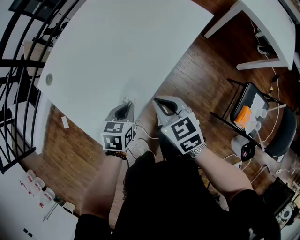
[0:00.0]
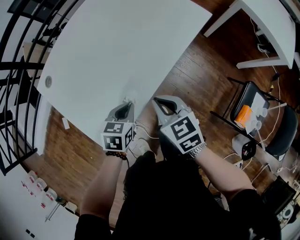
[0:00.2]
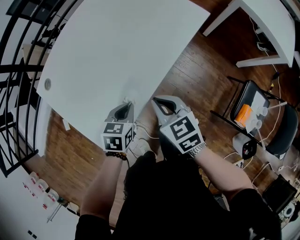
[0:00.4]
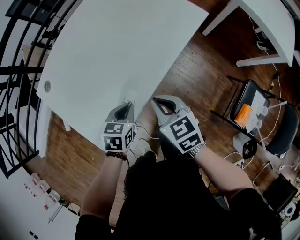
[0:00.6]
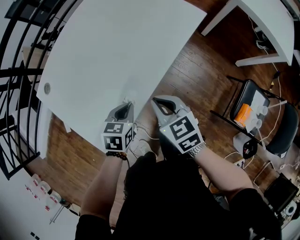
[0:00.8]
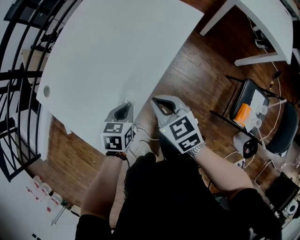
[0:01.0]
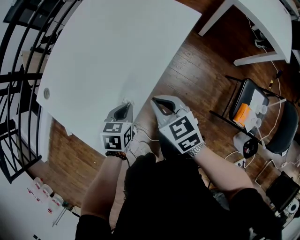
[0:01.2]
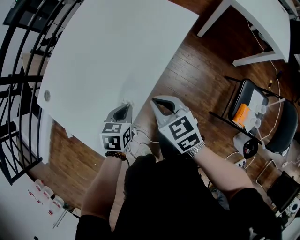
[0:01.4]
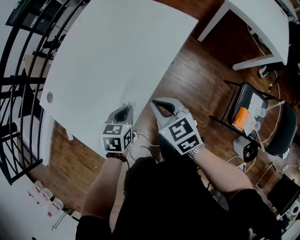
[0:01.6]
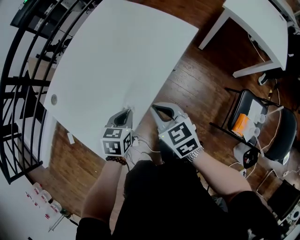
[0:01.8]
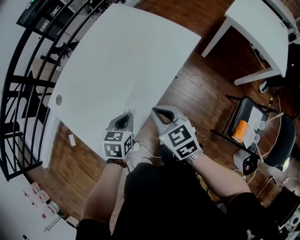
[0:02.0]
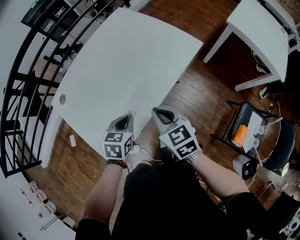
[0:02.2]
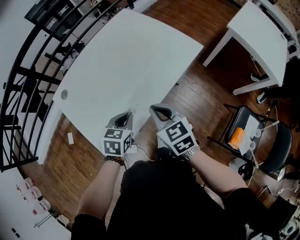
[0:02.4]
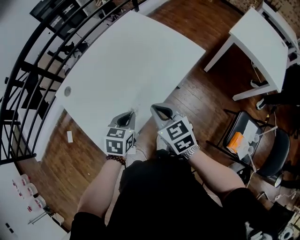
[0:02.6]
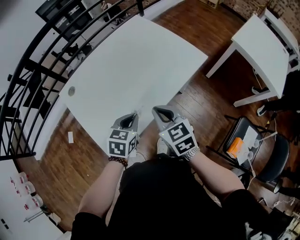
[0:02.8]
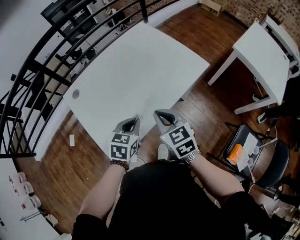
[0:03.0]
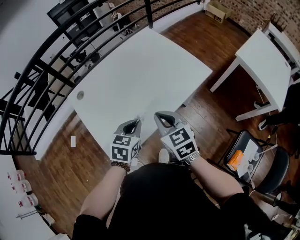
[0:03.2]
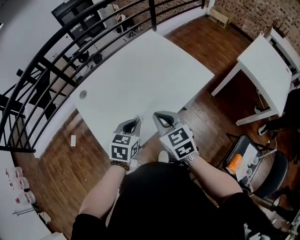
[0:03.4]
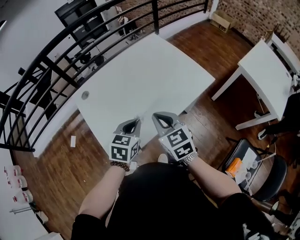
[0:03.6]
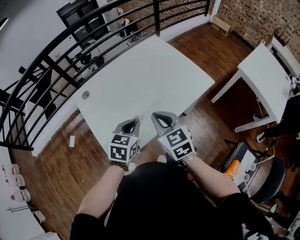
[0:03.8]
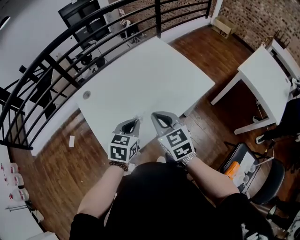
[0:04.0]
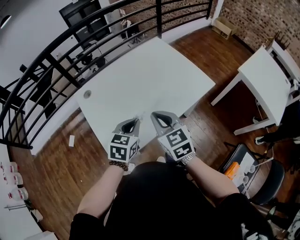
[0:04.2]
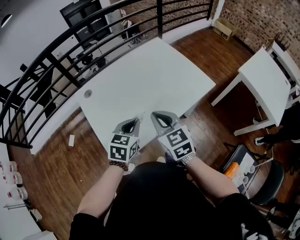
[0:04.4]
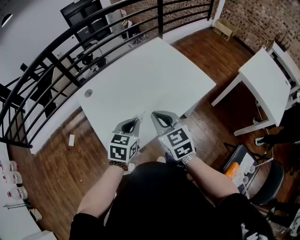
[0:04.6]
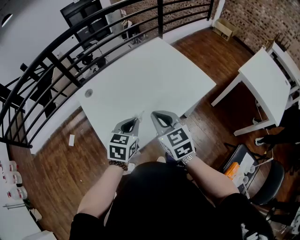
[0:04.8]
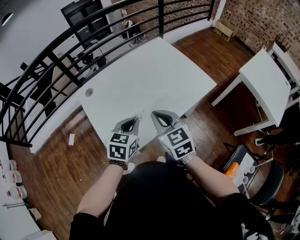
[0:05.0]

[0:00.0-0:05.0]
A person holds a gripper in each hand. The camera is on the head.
0:00.0 to 0:01.6: The left gripper moves roughly 5 cm; the right gripper shifts by some 5 cm.
0:01.6 to 0:03.4: The left gripper moves upward, some 15 cm; the right gripper goes some 10 cm upward and to the left.
0:03.4 to 0:05.0: The grippers stay close to where they were, moving slightly.

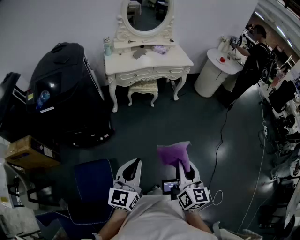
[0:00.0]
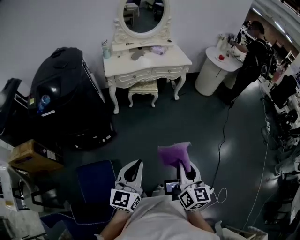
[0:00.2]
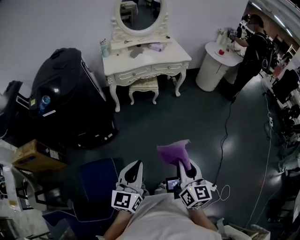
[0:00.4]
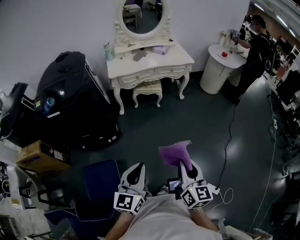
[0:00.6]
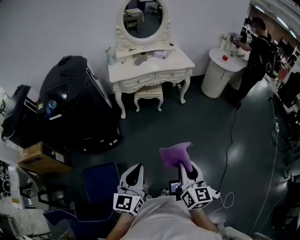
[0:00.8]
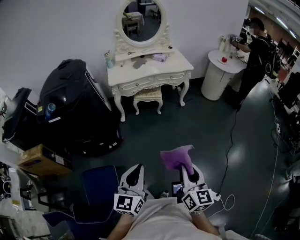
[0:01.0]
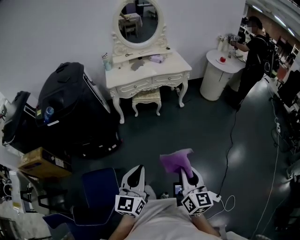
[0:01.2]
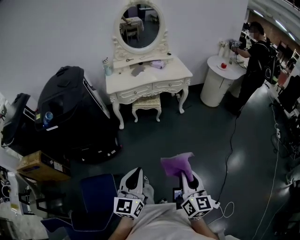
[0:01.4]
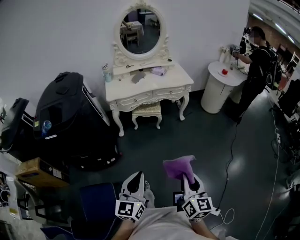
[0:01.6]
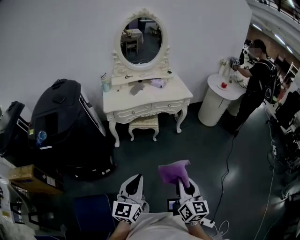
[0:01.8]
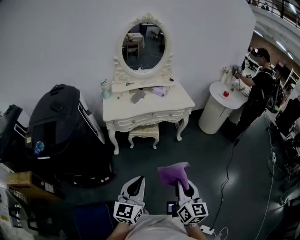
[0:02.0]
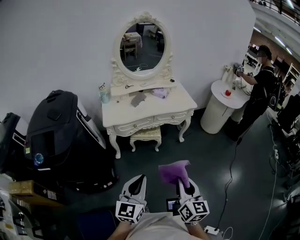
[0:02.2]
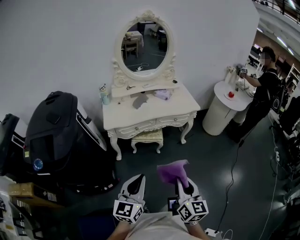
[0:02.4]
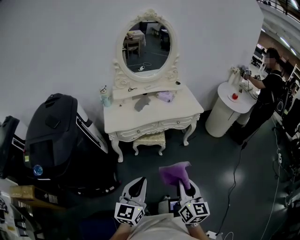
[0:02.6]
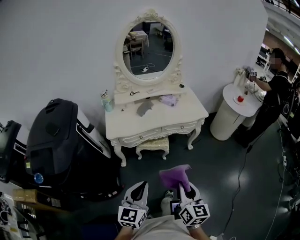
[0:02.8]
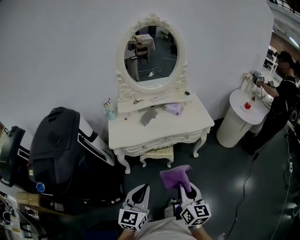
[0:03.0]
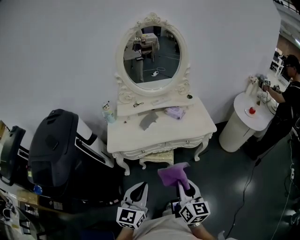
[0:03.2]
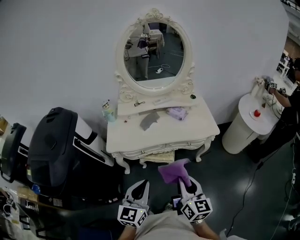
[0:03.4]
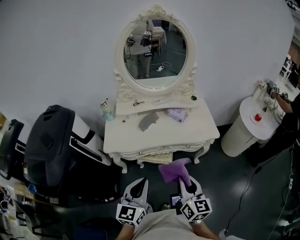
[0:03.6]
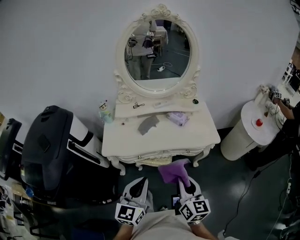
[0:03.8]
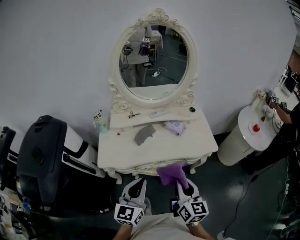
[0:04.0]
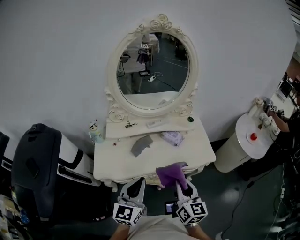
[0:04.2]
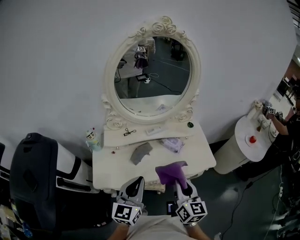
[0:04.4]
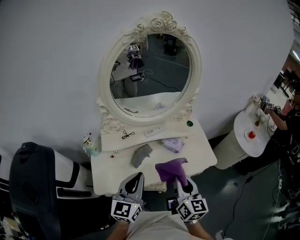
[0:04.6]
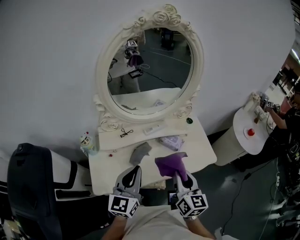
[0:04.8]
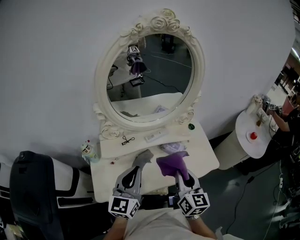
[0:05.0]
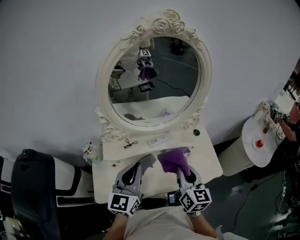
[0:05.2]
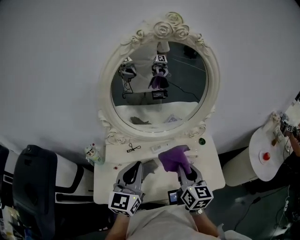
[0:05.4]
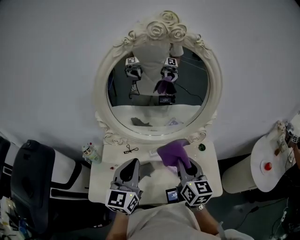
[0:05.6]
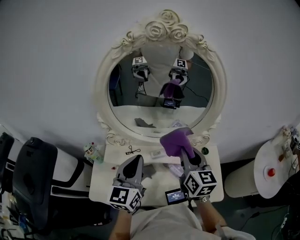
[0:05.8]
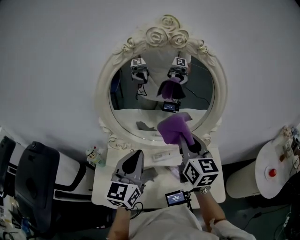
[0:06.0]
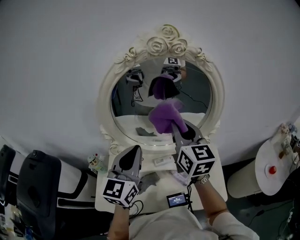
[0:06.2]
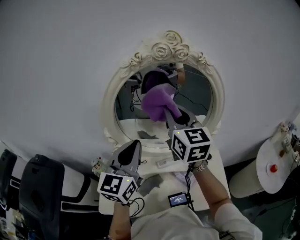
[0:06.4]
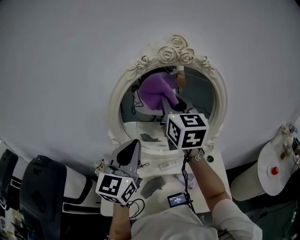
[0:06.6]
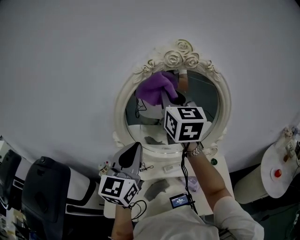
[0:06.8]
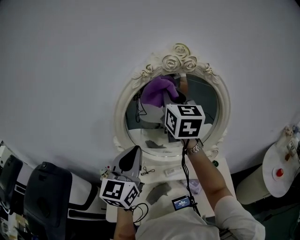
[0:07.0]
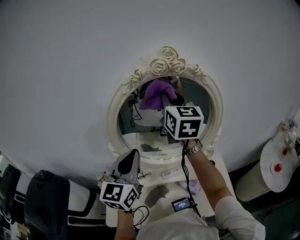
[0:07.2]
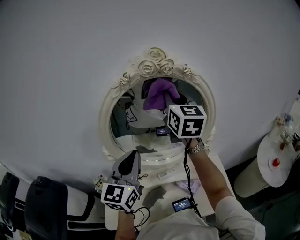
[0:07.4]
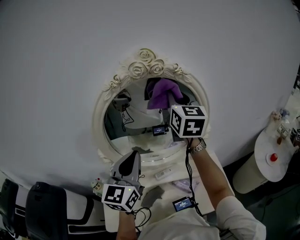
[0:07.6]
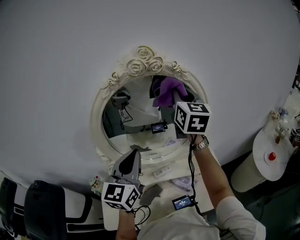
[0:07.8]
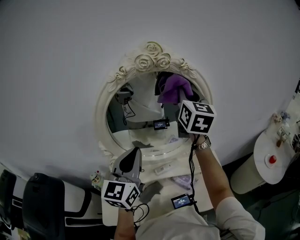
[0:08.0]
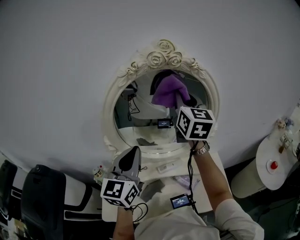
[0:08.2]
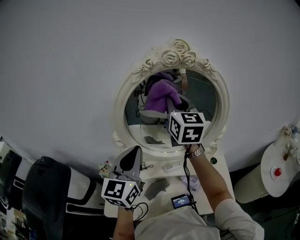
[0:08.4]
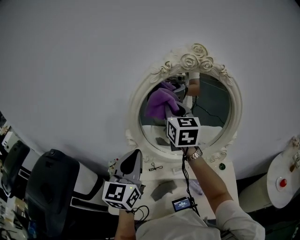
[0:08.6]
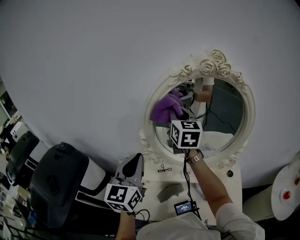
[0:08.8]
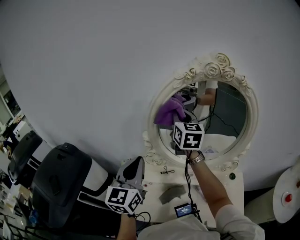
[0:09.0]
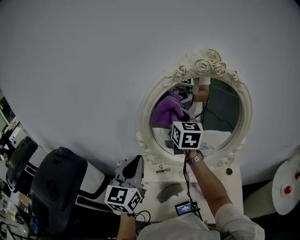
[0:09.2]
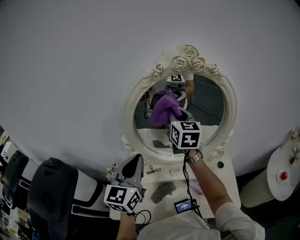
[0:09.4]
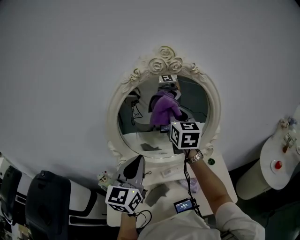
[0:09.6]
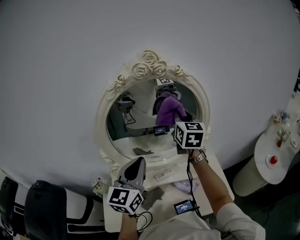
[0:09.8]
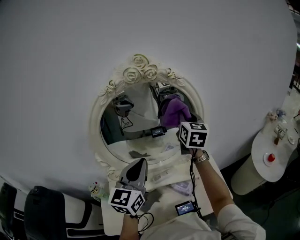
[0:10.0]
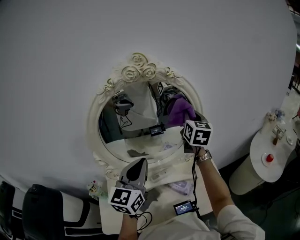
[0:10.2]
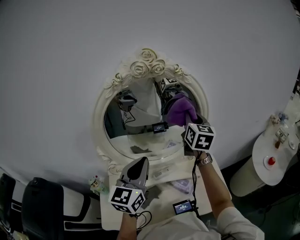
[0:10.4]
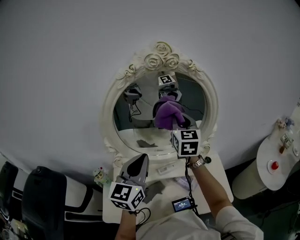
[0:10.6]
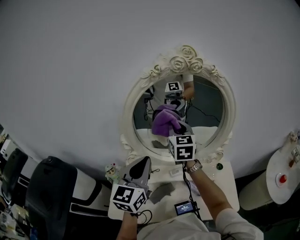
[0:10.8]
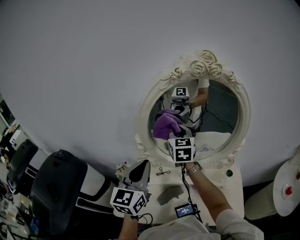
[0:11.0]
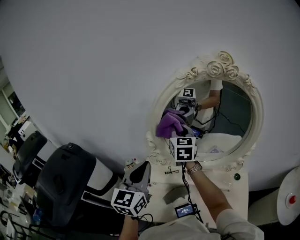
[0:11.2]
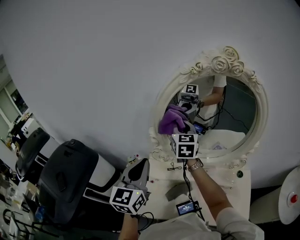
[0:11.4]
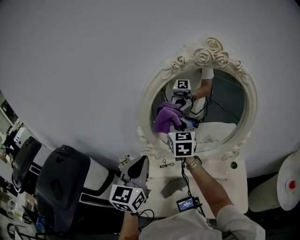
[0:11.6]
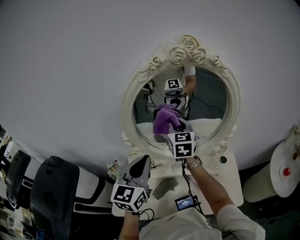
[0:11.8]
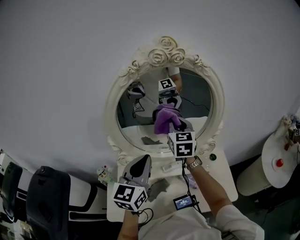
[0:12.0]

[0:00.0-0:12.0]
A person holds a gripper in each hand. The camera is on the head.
0:00.0 to 0:01.6: The two grippers go approximately 10 cm to the right and forward.
0:01.6 to 0:03.0: The two grippers travel together, forward, approximately 40 cm.
0:03.0 to 0:04.4: Both grippers travel together forward, roughly 40 cm.
0:04.4 to 0:06.0: The grippers both shift forward by roughly 35 cm.
0:06.0 to 0:07.6: The right gripper is displaced upward and forward by roughly 25 cm, and rotates approximately 20 degrees. Meanwhile the left gripper travels upward by some 10 cm.
0:07.6 to 0:09.0: The right gripper heads to the left, covering approximately 20 cm, and changes its angle by approximately 20 degrees. The left gripper travels to the left and backward by approximately 15 cm, and turns by some 20 degrees.
0:09.0 to 0:10.4: The left gripper shifts by approximately 20 cm, and rotates approximately 30 degrees. The right gripper moves approximately 30 cm, and turns by roughly 30 degrees.

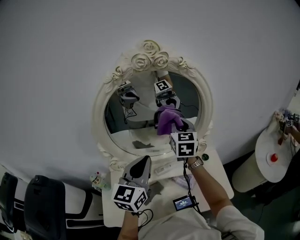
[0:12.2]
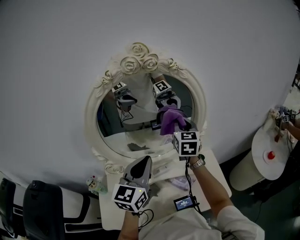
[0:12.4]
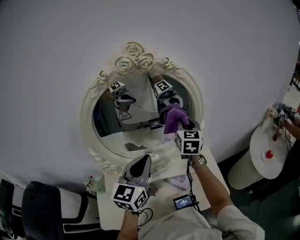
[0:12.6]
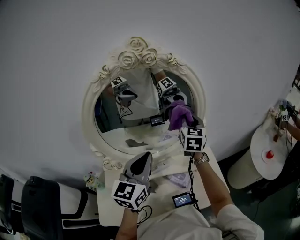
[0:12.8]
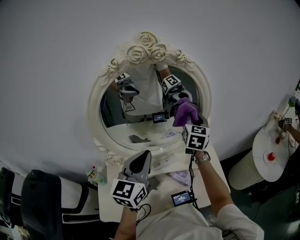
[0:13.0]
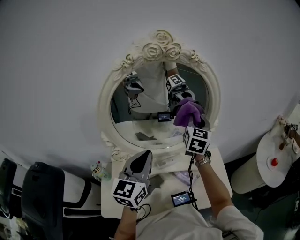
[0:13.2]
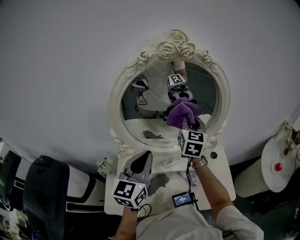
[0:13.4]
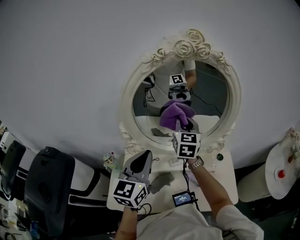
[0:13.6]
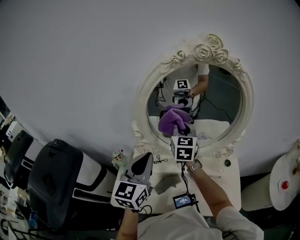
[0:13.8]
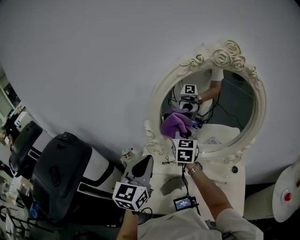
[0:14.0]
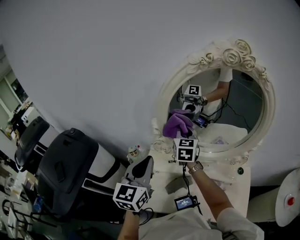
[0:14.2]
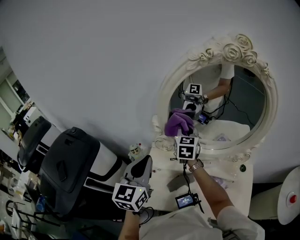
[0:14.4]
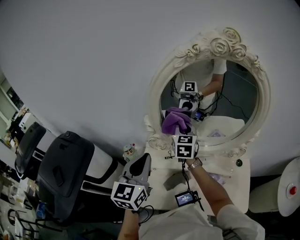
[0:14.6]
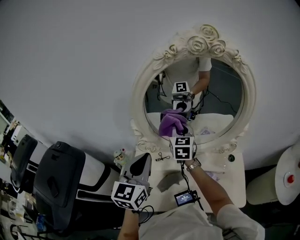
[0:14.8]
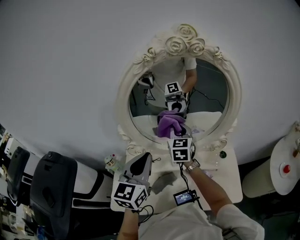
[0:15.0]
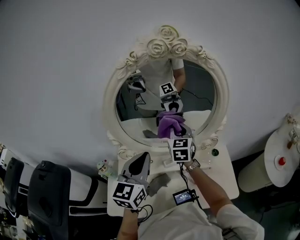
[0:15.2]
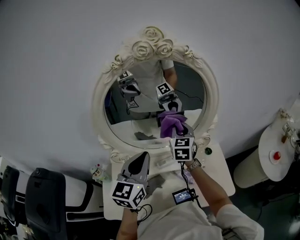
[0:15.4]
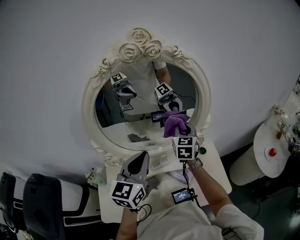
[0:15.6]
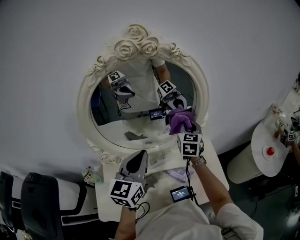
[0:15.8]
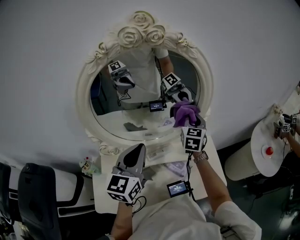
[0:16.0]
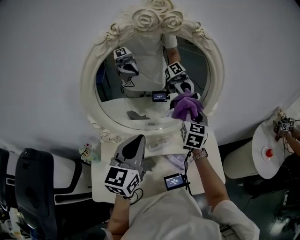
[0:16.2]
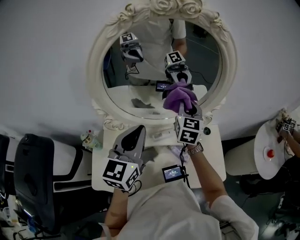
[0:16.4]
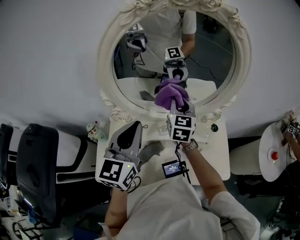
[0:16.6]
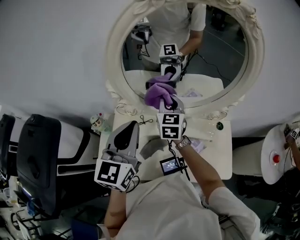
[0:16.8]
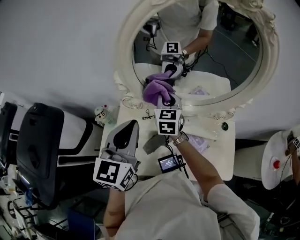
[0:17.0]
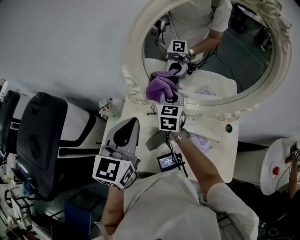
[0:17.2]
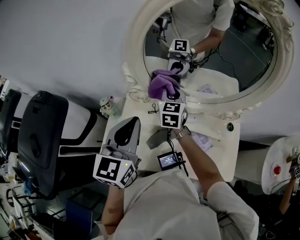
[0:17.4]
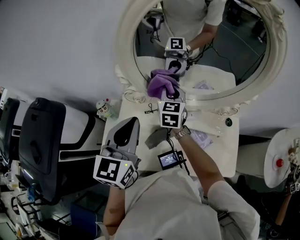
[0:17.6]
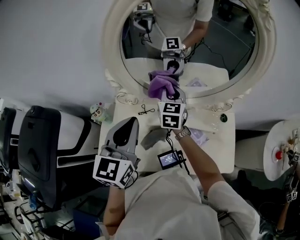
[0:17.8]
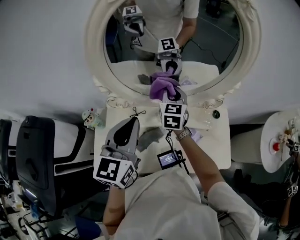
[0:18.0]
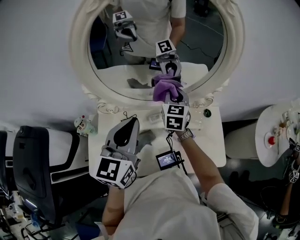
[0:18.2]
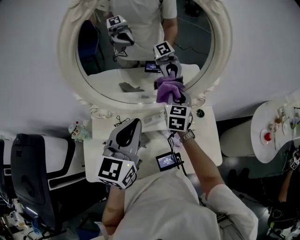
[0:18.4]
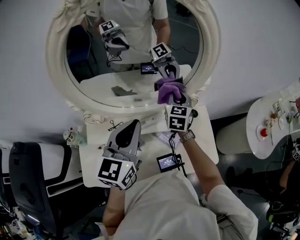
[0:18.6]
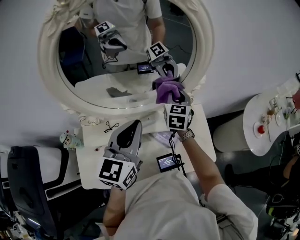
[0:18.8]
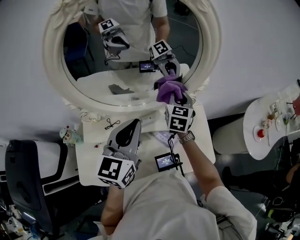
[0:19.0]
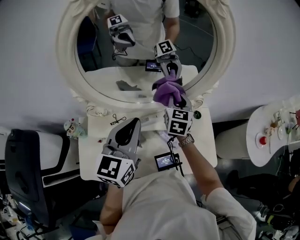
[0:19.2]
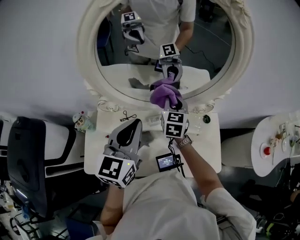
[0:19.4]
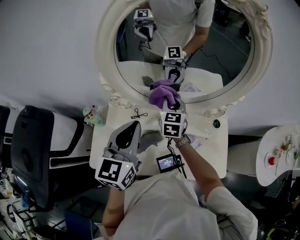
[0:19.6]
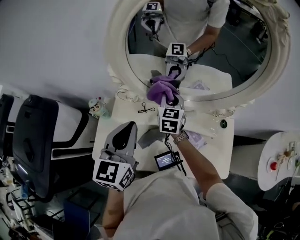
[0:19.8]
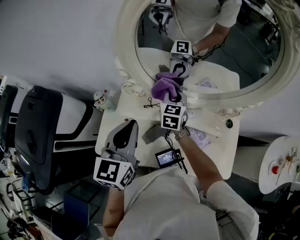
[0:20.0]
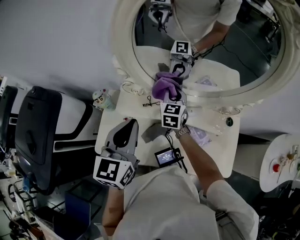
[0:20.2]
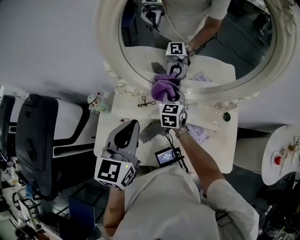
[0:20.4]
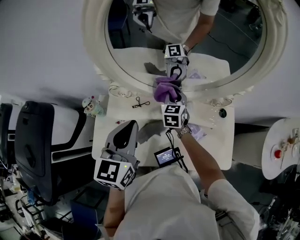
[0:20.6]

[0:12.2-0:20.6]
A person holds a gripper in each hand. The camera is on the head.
0:12.2 to 0:13.6: The two grippers go some 10 cm to the left.
0:13.6 to 0:15.0: The right gripper is displaced downward by roughly 5 cm, and travels to the left and back again, some 15 cm each way. Meanwhile the left gripper goes to the left and returns, roughly 10 cm each way.
0:15.0 to 0:16.4: The right gripper shifts about 15 cm to the right.
0:16.4 to 0:17.8: The left gripper is displaced to the left by about 10 cm, while the right gripper goes roughly 20 cm to the left and downward.
0:17.8 to 0:19.2: The right gripper shifts some 20 cm to the right, while the left gripper shifts approximately 10 cm to the right and forward.
0:19.2 to 0:20.6: The left gripper heads to the left, covering about 10 cm. Meanwhile the right gripper heads to the left and downward, covering some 20 cm.
